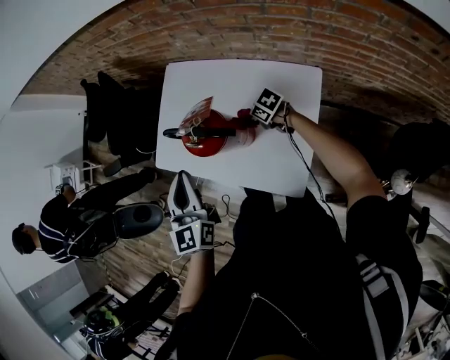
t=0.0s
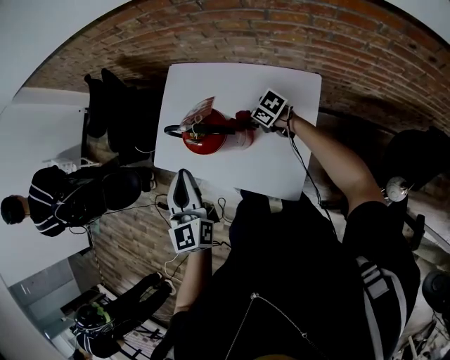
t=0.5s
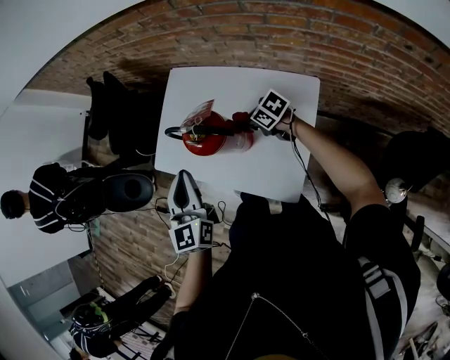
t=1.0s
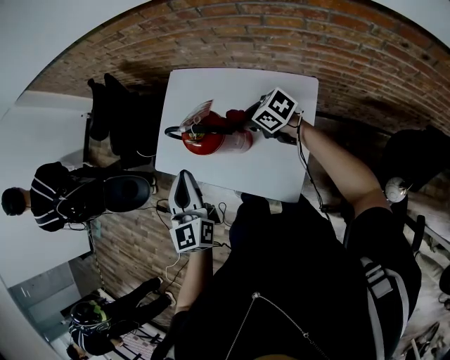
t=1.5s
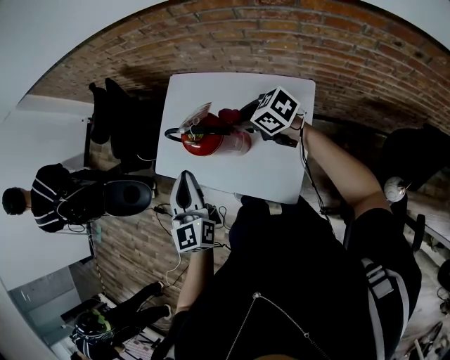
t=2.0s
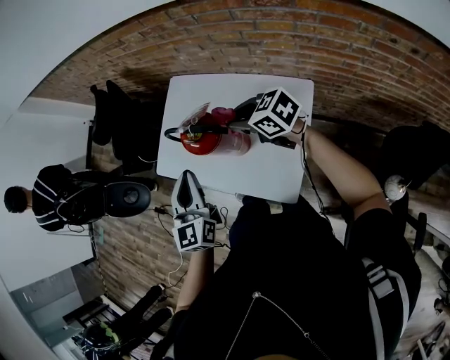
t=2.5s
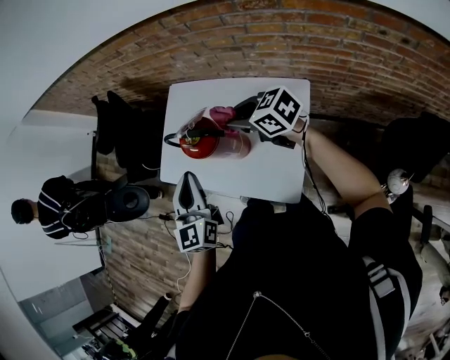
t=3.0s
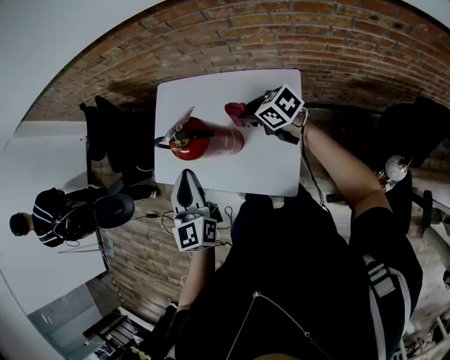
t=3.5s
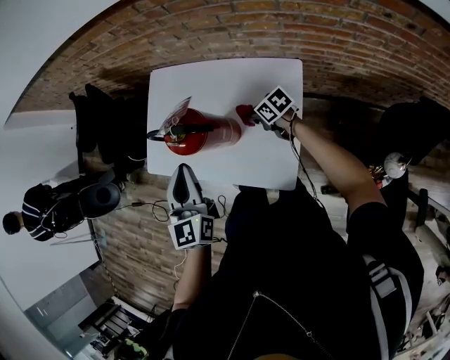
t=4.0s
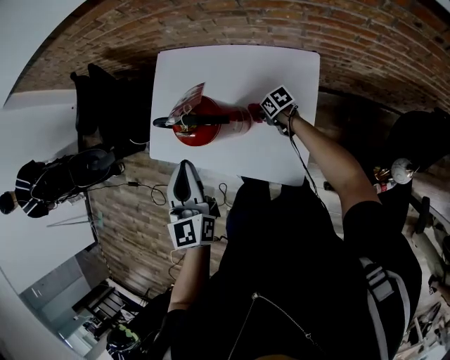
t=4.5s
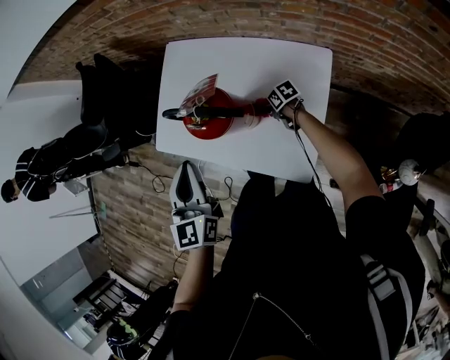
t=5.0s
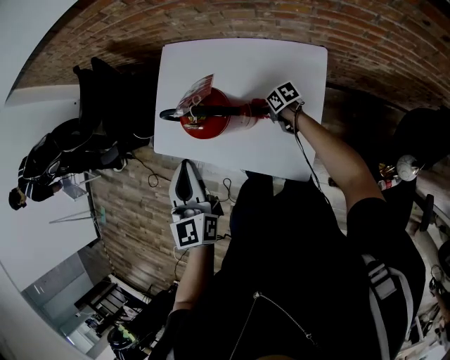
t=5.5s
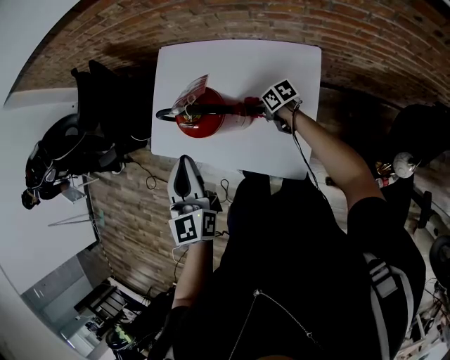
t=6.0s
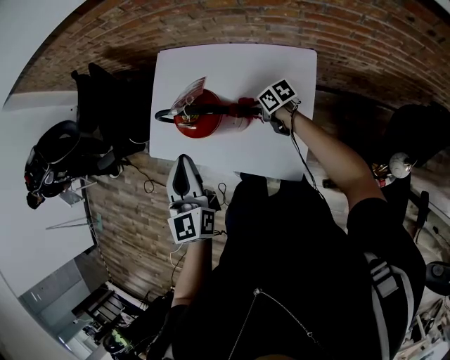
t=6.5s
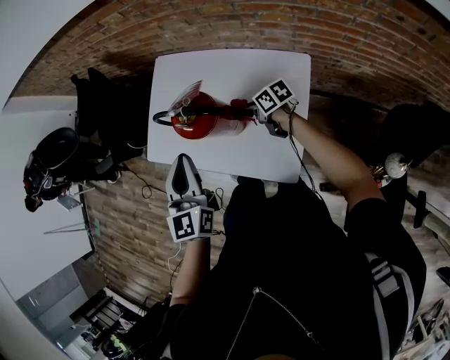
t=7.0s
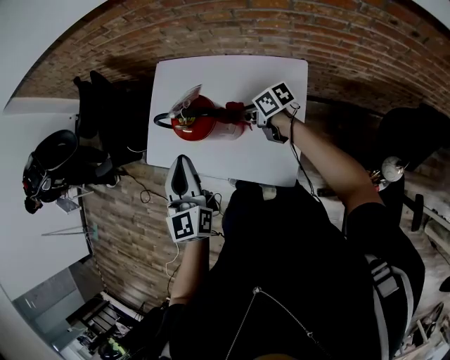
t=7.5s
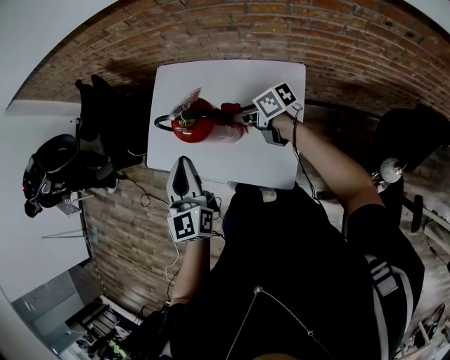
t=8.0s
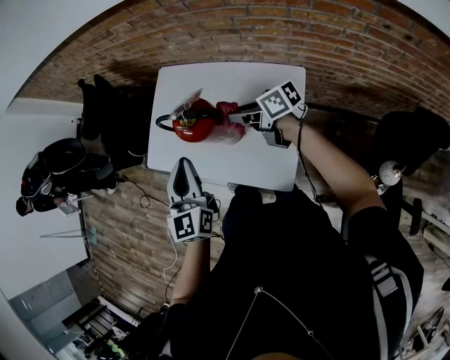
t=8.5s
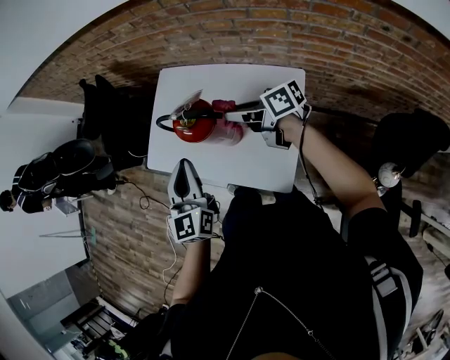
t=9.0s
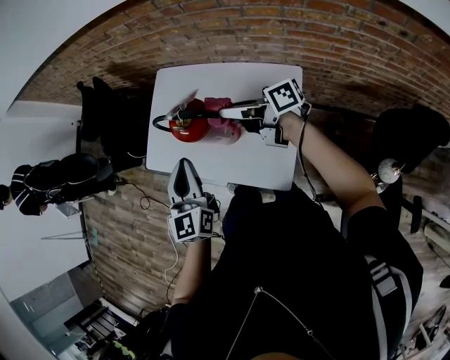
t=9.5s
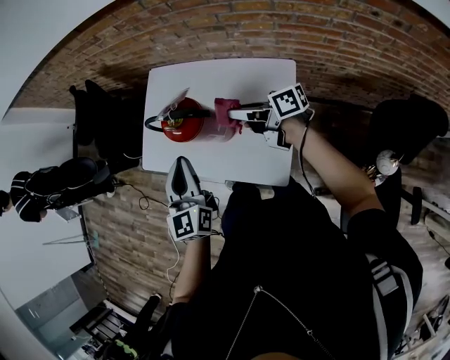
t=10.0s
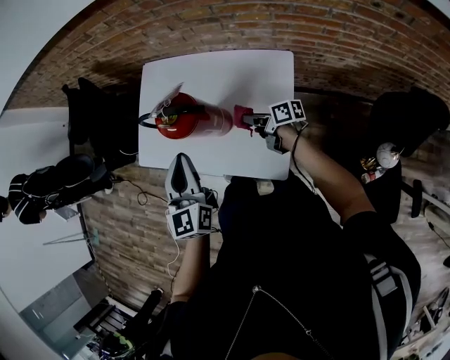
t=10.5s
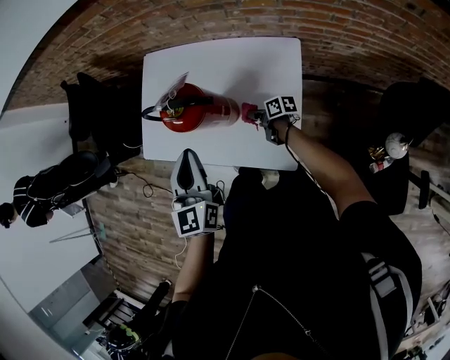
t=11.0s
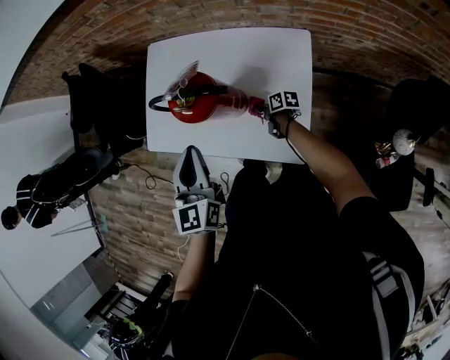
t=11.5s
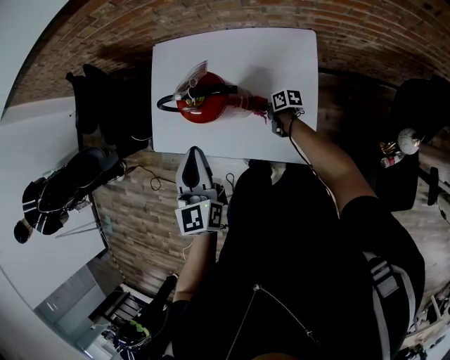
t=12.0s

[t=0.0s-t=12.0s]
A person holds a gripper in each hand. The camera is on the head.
t=0.0s to t=2.0s: The right gripper travels upward by about 20 cm, and swivels some 20 degrees.
t=2.0s to t=4.0s: The right gripper heads downward, covering about 20 cm, and rotates about 30 degrees.
t=4.0s to t=6.0s: The right gripper shifts roughly 5 cm downward.
t=6.0s to t=8.0s: The right gripper shifts approximately 20 cm upward.
t=8.0s to t=10.0s: The right gripper heads upward, covering roughly 5 cm, and swivels some 20 degrees.
t=10.0s to t=12.0s: The left gripper moves approximately 5 cm, while the right gripper travels downward by approximately 35 cm, and tips its fingers downward by roughly 30 degrees.

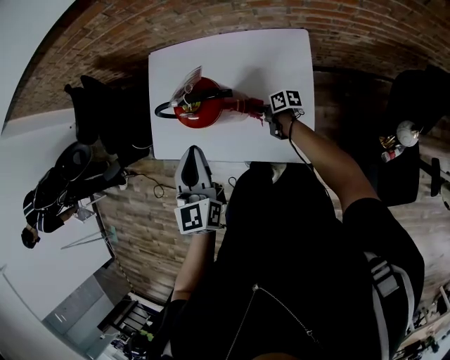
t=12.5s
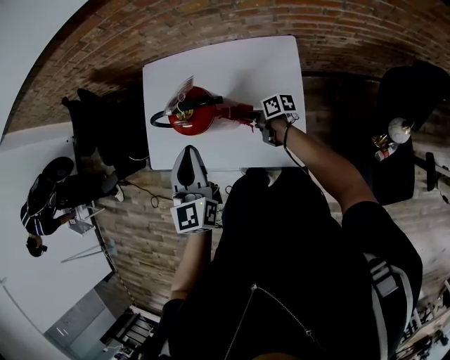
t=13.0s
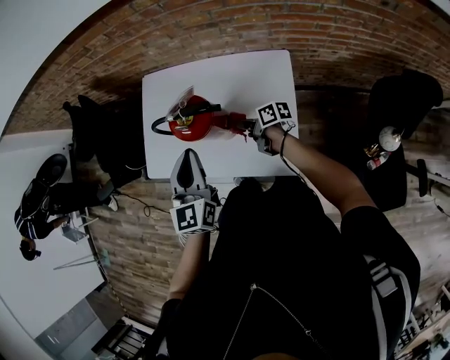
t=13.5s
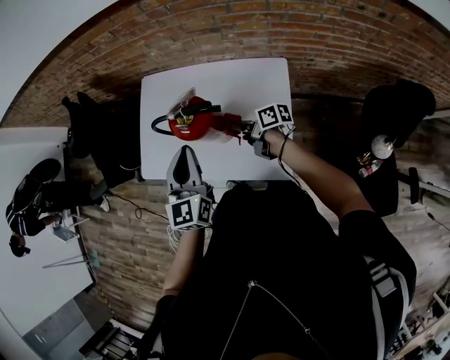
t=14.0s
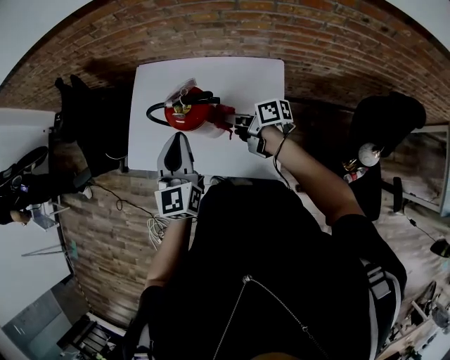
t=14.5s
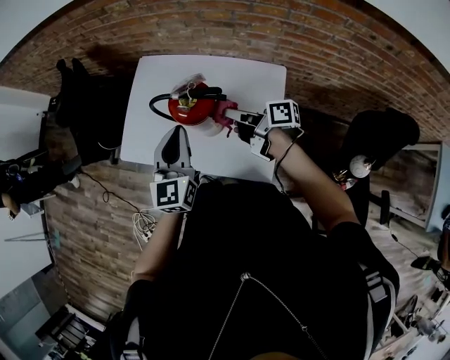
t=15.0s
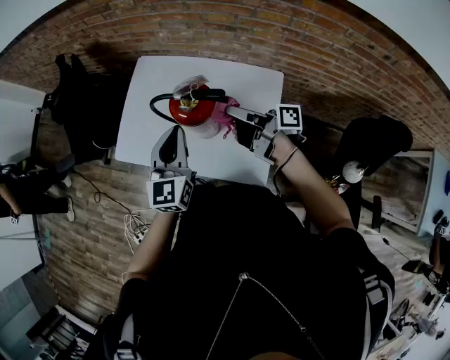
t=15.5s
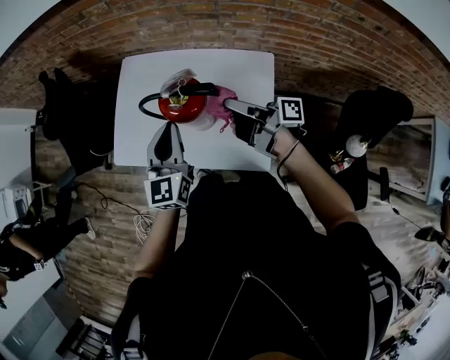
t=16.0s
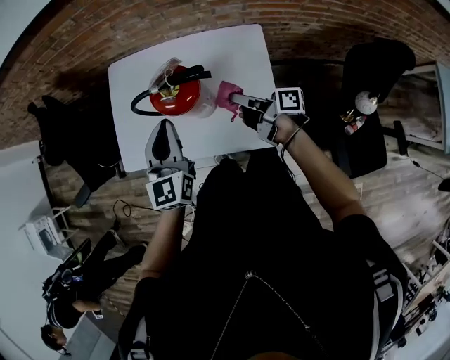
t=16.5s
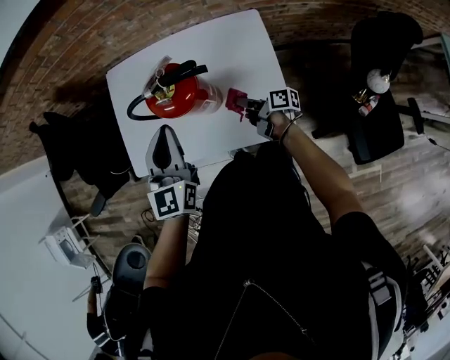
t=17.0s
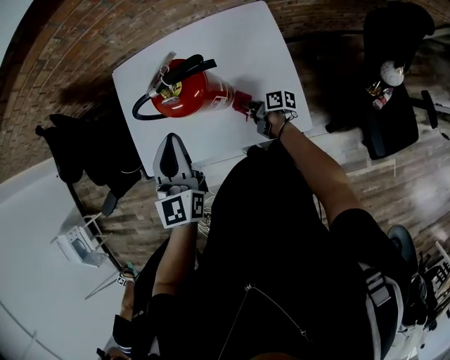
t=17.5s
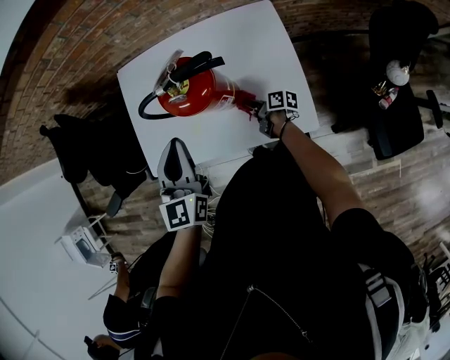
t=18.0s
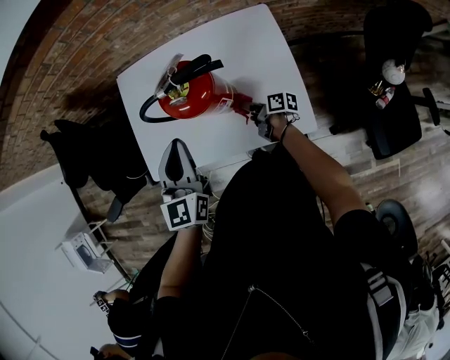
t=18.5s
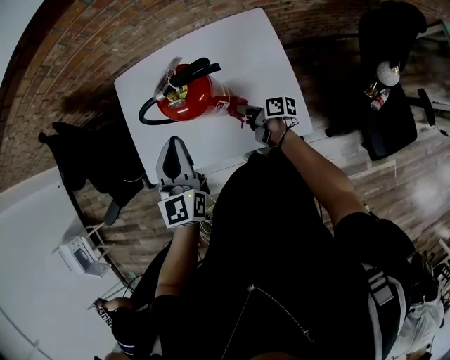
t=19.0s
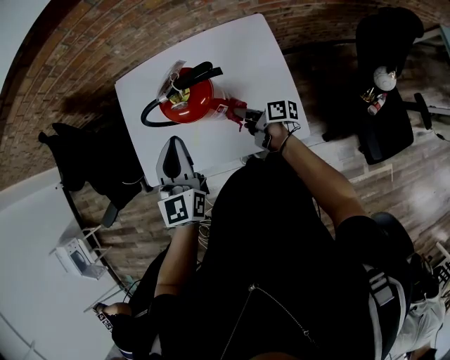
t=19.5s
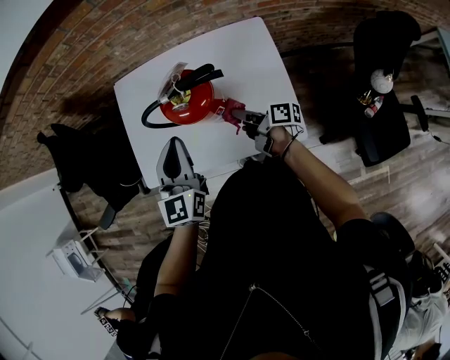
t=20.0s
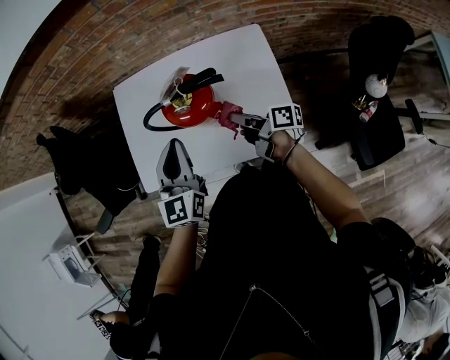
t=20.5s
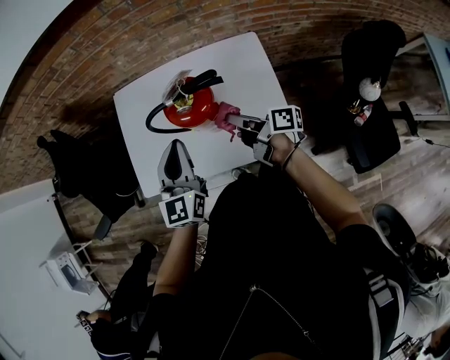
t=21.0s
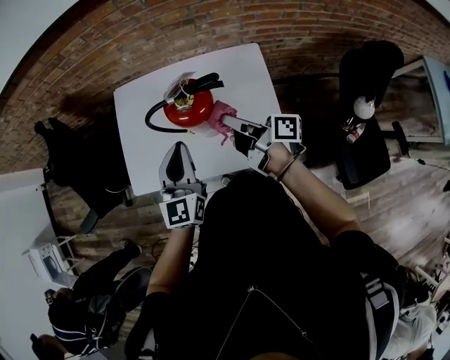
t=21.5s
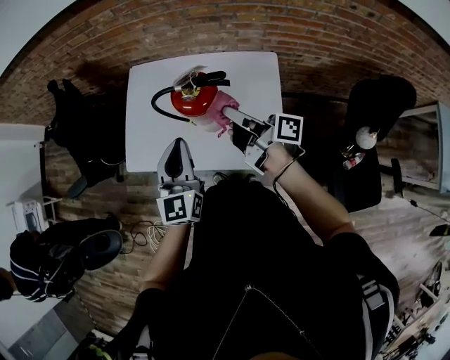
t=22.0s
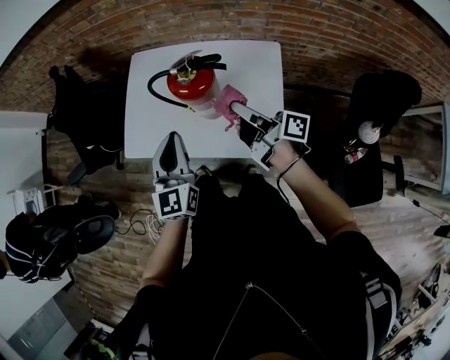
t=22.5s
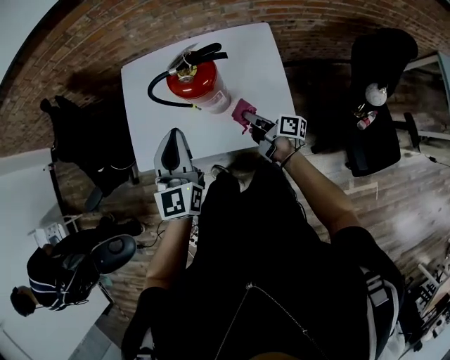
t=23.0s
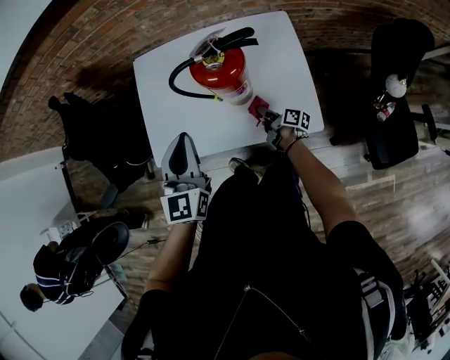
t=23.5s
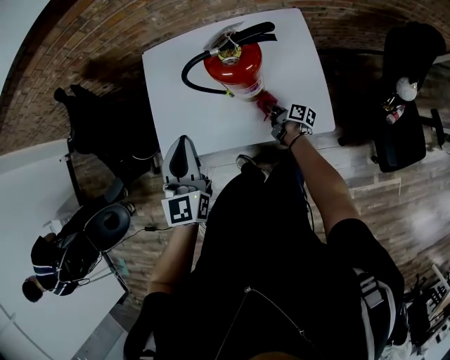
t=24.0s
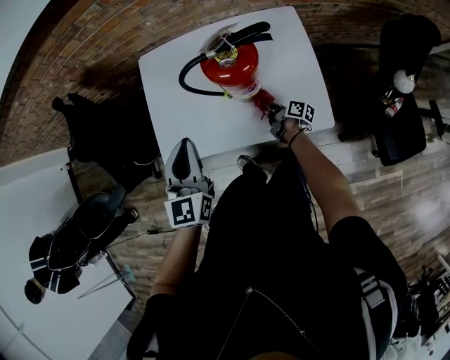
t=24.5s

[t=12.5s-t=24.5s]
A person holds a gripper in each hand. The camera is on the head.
t=12.5s to t=14.5s: The right gripper moves upward, some 25 cm.
t=14.5s to t=16.5s: The right gripper travels upward and back again, about 10 cm each way, and rotates approximately 20 degrees.
t=16.5s to t=18.5s: The left gripper shifts by about 5 cm. The right gripper goes some 25 cm downward, and turns by about 20 degrees.
t=18.5s to t=20.5s: The right gripper heads upward, covering roughly 20 cm.
t=20.5s to t=22.5s: The right gripper shifts some 15 cm upward. Meanwhile the left gripper travels backward by some 10 cm.
t=22.5s to t=24.5s: The left gripper is displaced to the left by approximately 10 cm; the right gripper goes approximately 35 cm downward, and rotates approximately 40 degrees.

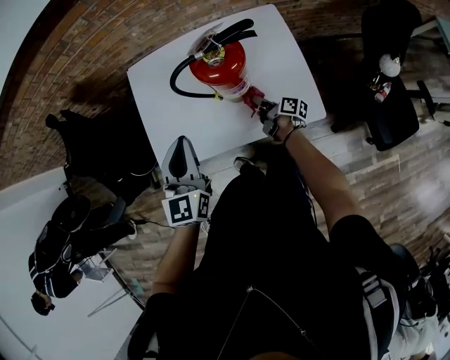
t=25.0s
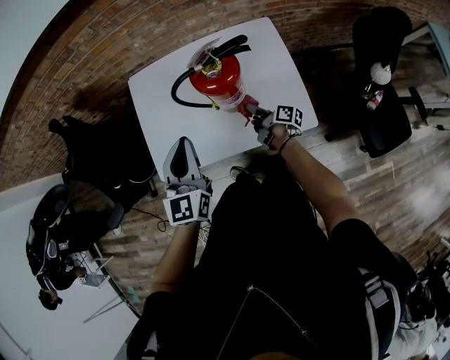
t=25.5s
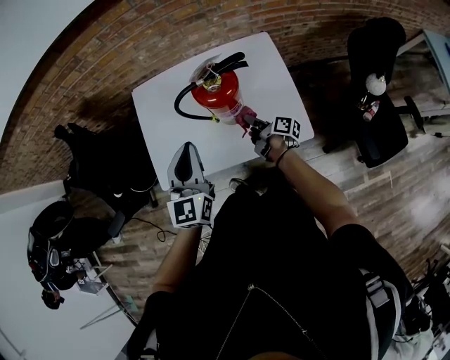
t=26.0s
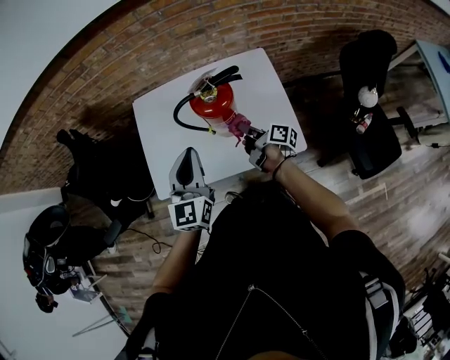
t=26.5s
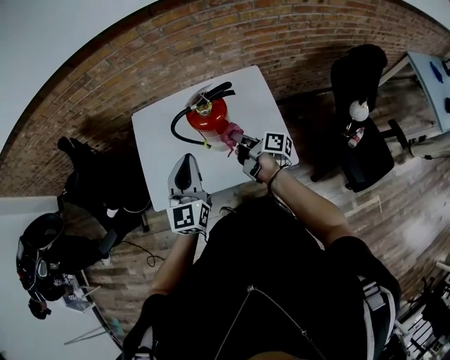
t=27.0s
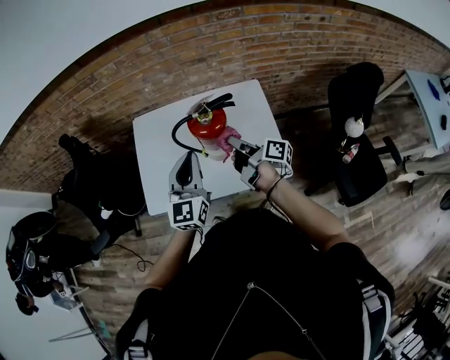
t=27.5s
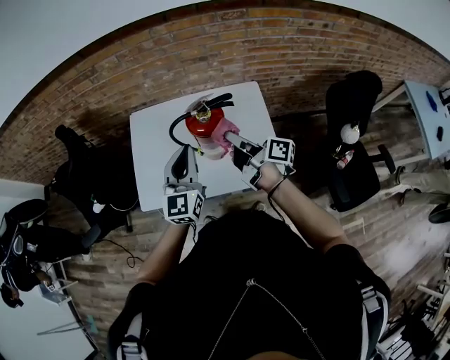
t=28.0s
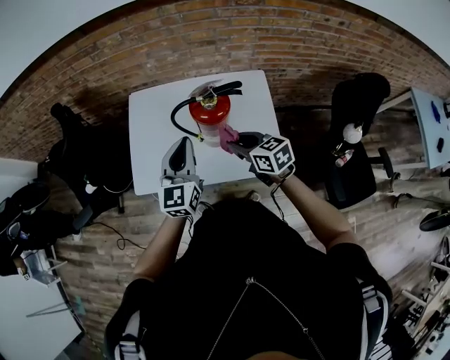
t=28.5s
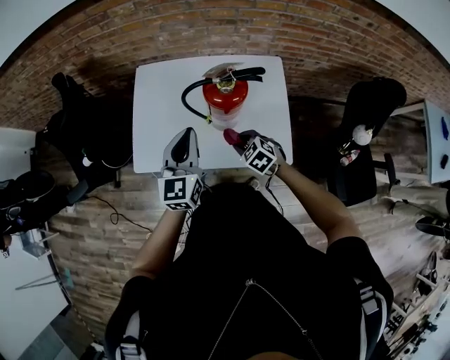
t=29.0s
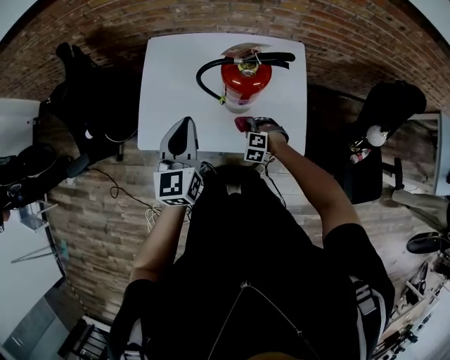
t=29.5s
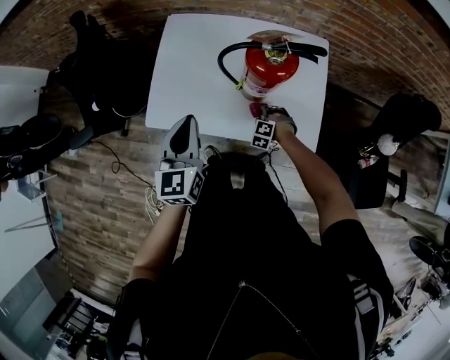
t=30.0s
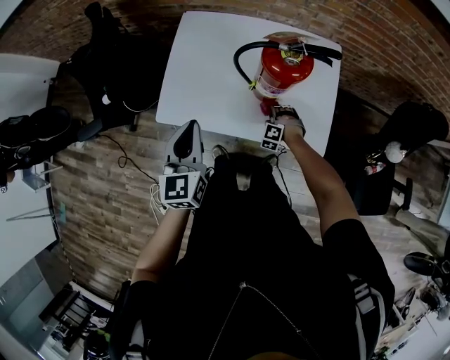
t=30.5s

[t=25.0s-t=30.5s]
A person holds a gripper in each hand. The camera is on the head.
t=25.0s to t=27.0s: The left gripper goes roughly 10 cm upward and to the right, while the right gripper goes some 20 cm upward.
t=27.0s to t=28.5s: The right gripper shifts roughly 5 cm upward, and rolls counterclockwise, seen from behind, by approximately 60 degrees.
t=28.5s to t=30.5s: The right gripper moves downward, some 35 cm, and rolls counterclockwise, seen from behind, by some 80 degrees, while the left gripper heads to the left, downward and backward, covering roughly 15 cm, and changes its angle by some 20 degrees.
